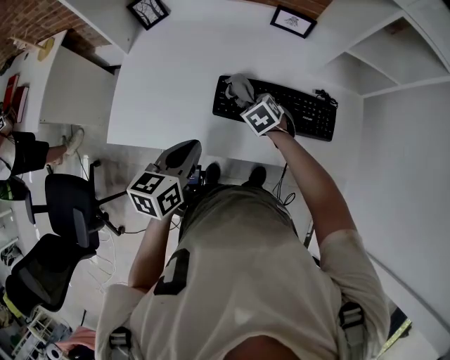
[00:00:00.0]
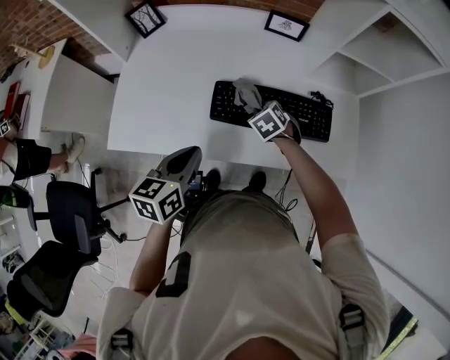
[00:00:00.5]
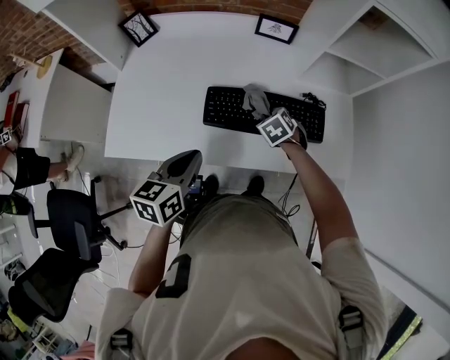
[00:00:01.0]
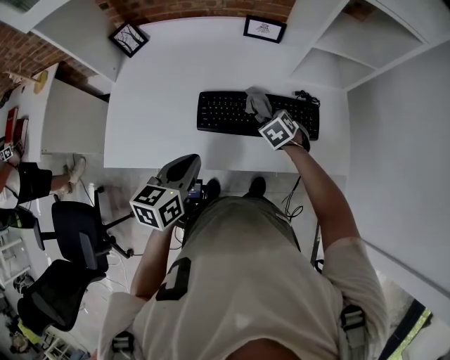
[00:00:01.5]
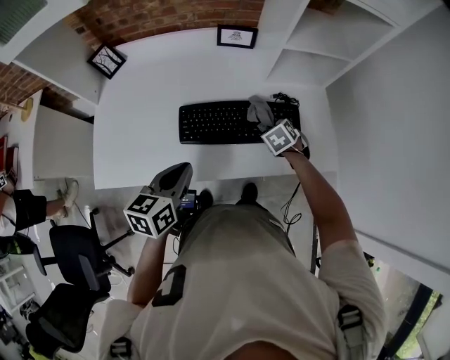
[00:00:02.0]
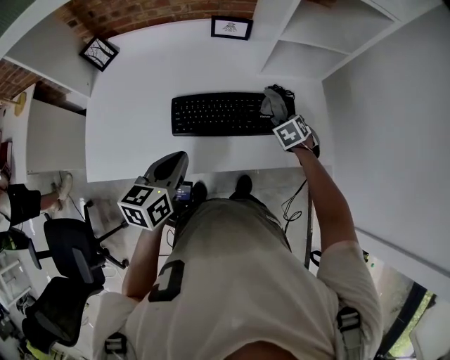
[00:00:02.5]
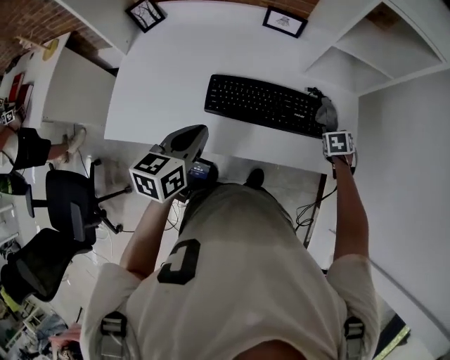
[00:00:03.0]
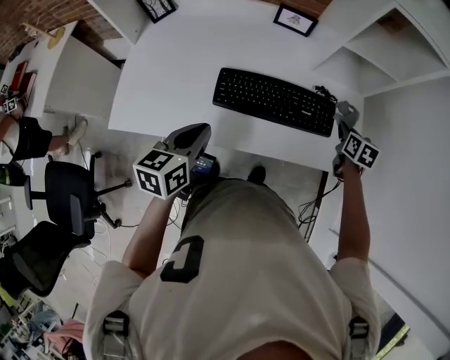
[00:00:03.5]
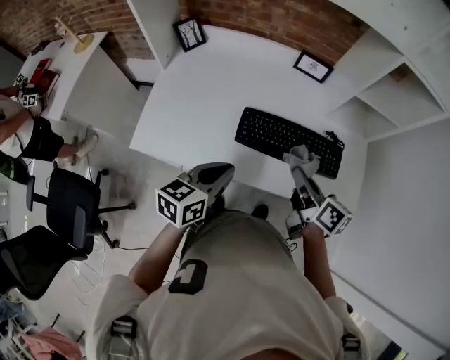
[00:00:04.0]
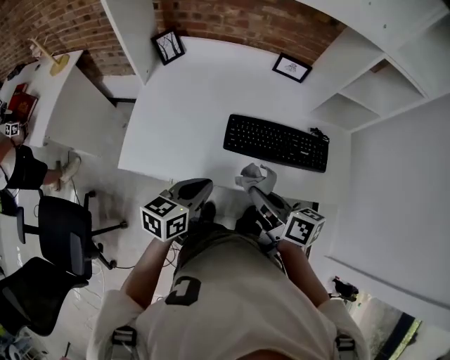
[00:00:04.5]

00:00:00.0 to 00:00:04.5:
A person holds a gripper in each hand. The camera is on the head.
00:00:00.0 to 00:00:02.0: The left gripper travels to the right by roughly 5 cm. The right gripper shifts about 20 cm to the right.
00:00:02.0 to 00:00:04.5: The left gripper shifts by about 10 cm. Meanwhile the right gripper changes place by about 35 cm, and tips its fingers upward by approximately 50 degrees.

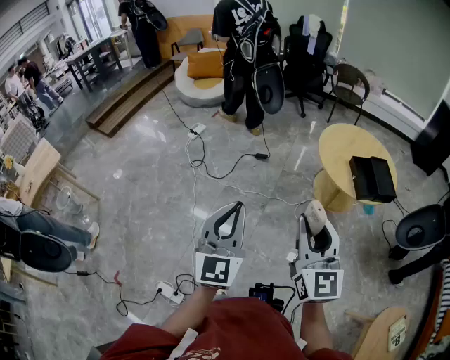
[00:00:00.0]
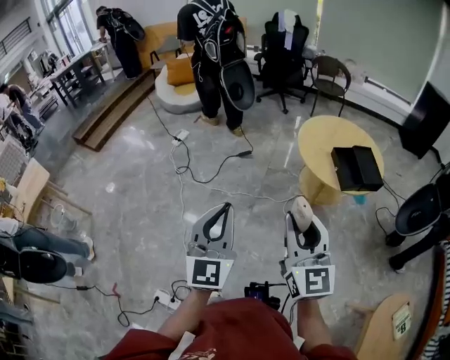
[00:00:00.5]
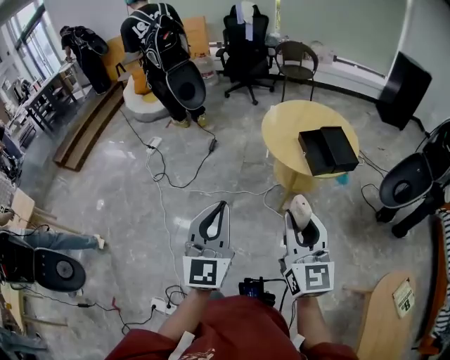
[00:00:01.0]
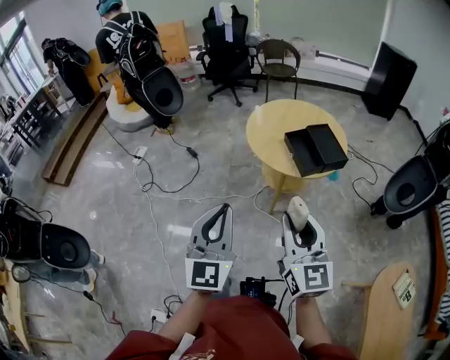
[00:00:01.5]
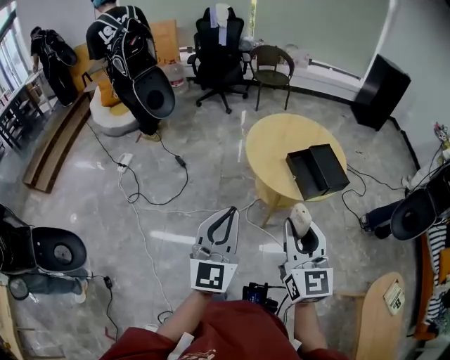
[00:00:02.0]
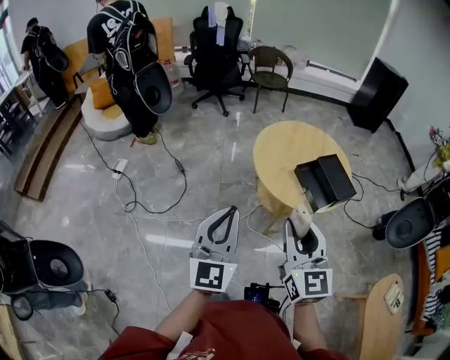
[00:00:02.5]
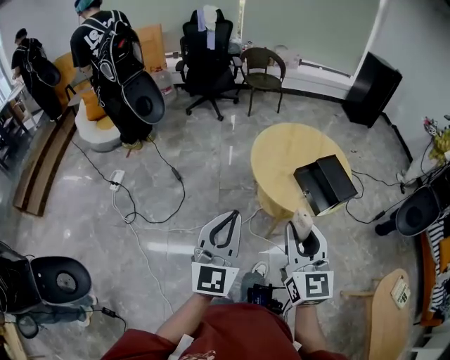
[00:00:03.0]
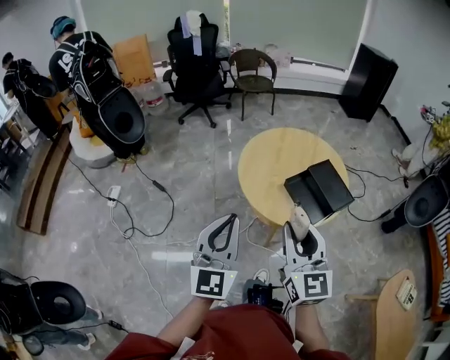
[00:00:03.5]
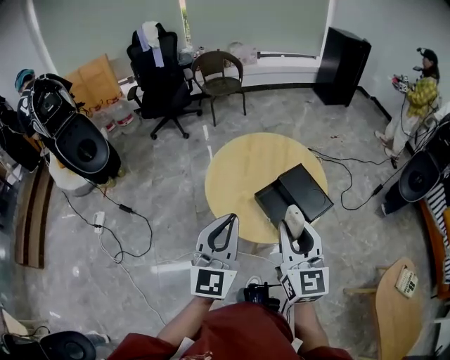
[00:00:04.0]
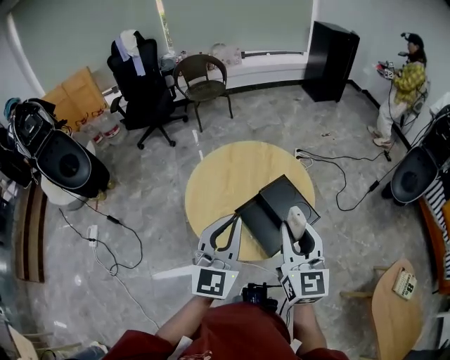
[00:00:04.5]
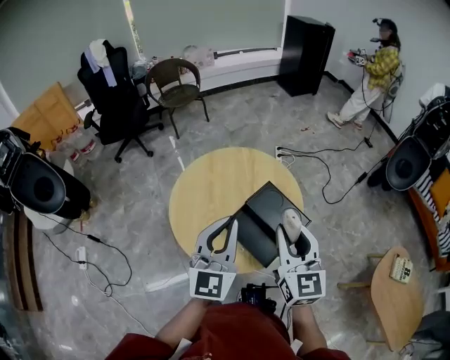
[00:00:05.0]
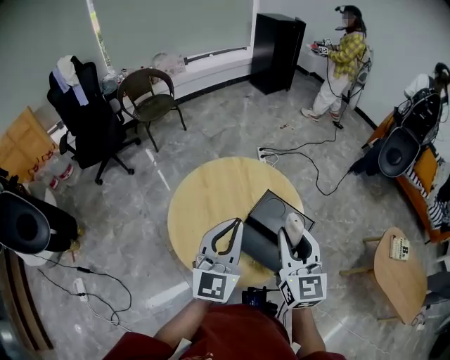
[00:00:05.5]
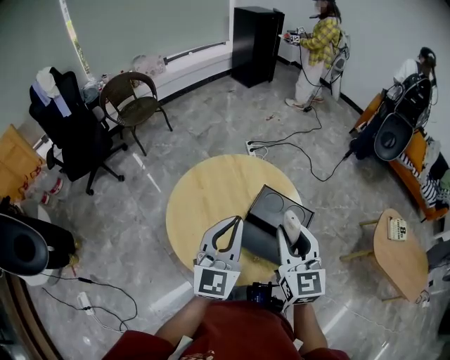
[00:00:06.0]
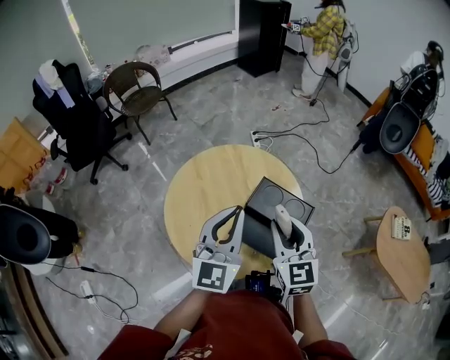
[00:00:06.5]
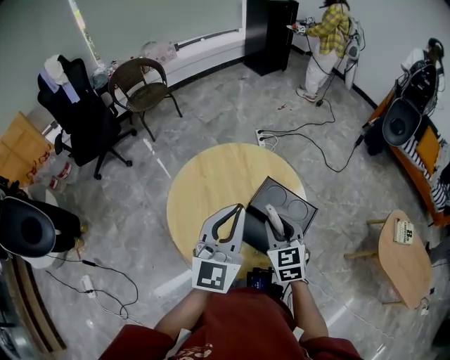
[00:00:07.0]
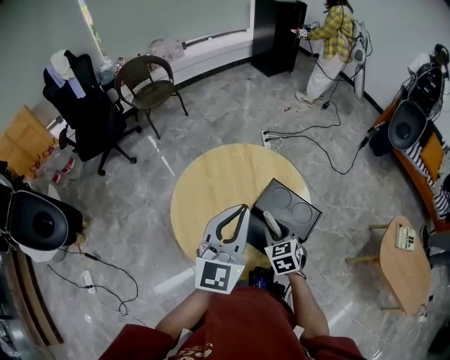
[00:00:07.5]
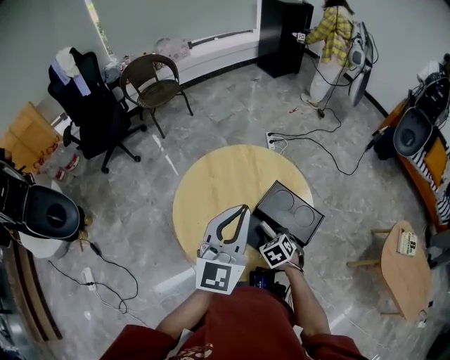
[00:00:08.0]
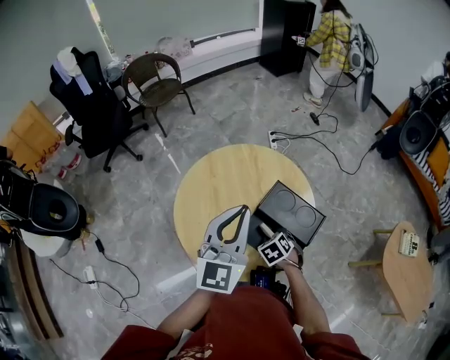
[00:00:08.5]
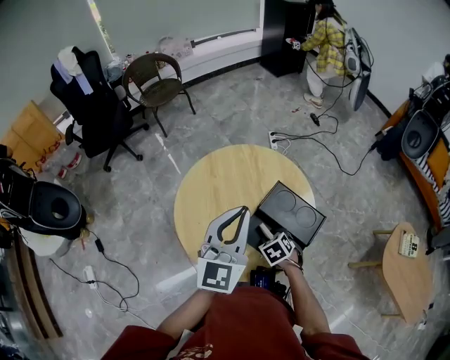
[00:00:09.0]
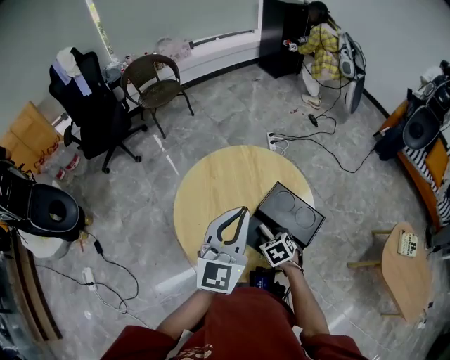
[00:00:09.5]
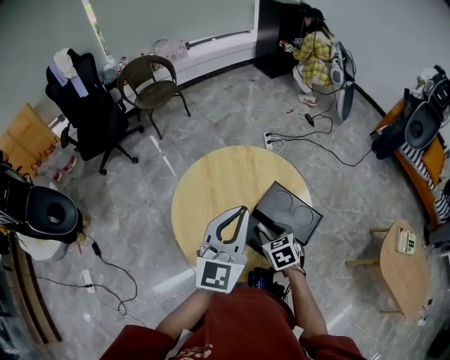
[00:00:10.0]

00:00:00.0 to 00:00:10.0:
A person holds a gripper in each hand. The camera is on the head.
00:00:00.0 to 00:00:02.0: Both grippers travel together forward and to the right, approximately 25 cm. The left gripper turns by about 20 degrees.
00:00:02.0 to 00:00:04.0: Both grippers travel together forward, about 30 cm.
00:00:04.0 to 00:00:06.0: The right gripper moves about 20 cm, and rotates approximately 30 degrees. The left gripper moves about 25 cm, and rotates some 30 degrees.
00:00:06.0 to 00:00:08.0: The right gripper goes some 30 cm downward, and tilts its fingers about 50 degrees downward.
00:00:08.0 to 00:00:10.0: The right gripper travels upward by some 5 cm.

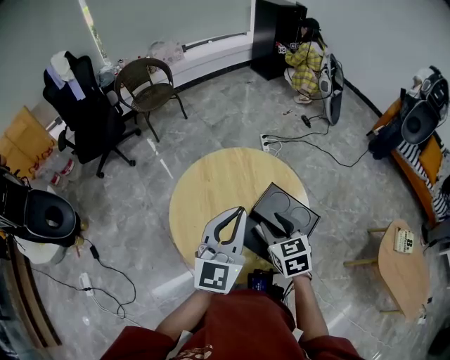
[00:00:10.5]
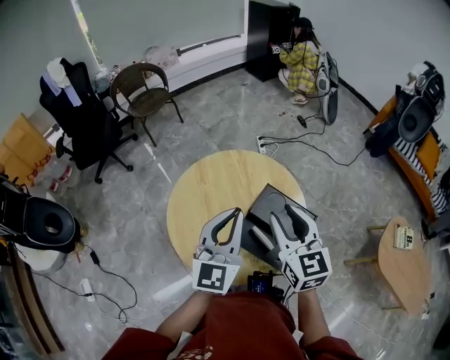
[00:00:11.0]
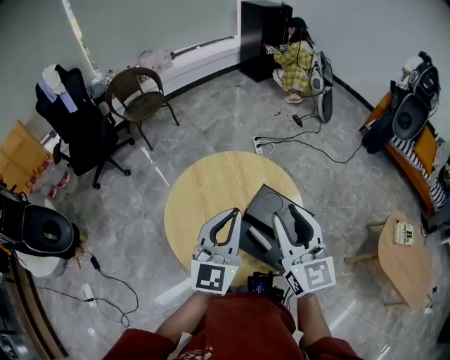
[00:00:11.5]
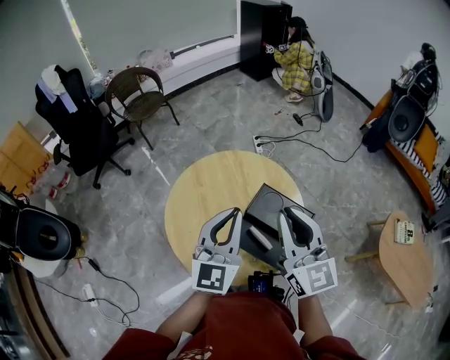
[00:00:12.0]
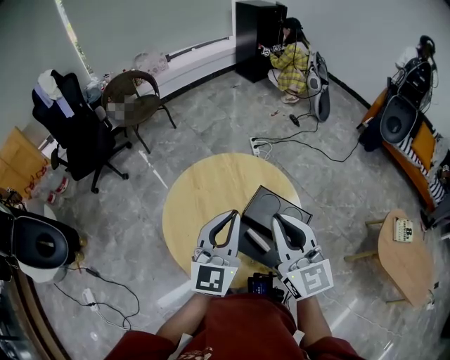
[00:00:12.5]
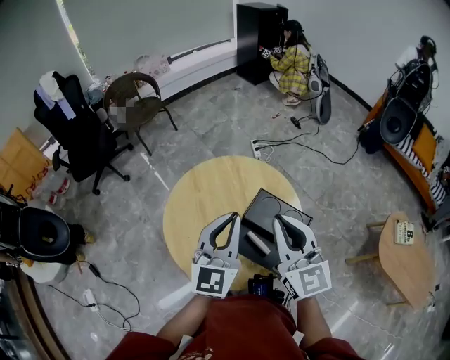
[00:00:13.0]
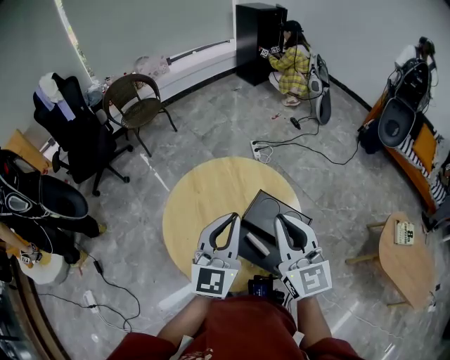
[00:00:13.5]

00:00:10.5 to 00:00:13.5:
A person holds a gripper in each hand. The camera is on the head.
00:00:10.5 to 00:00:12.0: The right gripper travels upward by approximately 15 cm, angles its fingers upward, by about 40 degrees, and closes.
00:00:12.0 to 00:00:13.5: The grippers move only a little.

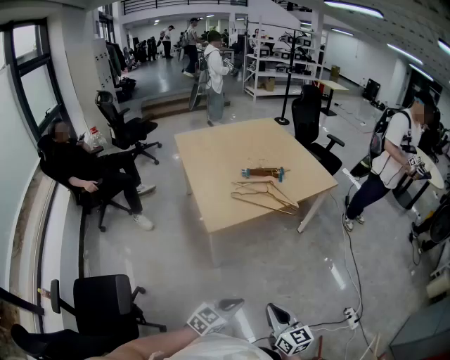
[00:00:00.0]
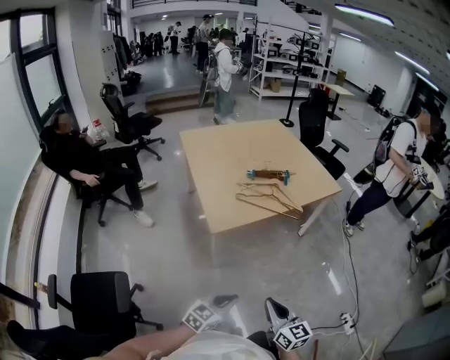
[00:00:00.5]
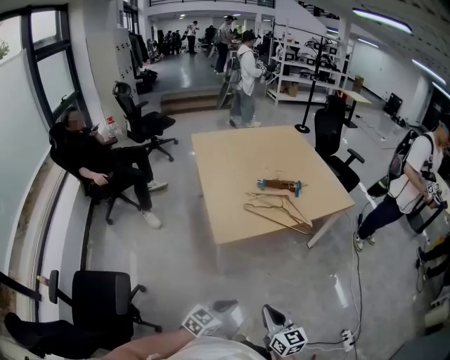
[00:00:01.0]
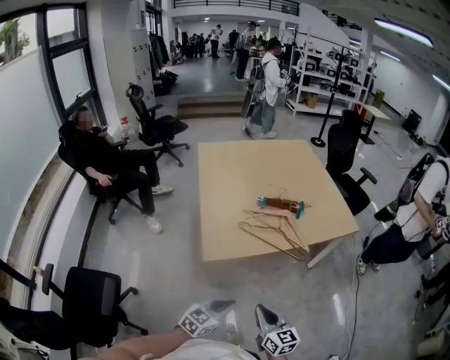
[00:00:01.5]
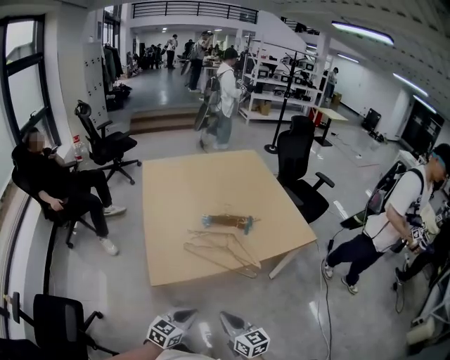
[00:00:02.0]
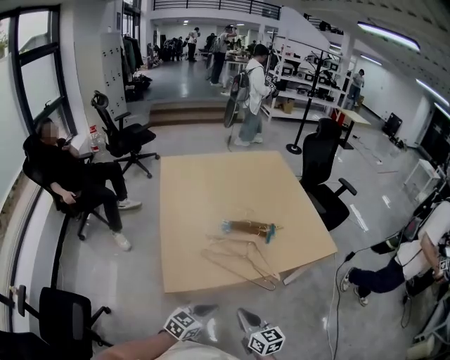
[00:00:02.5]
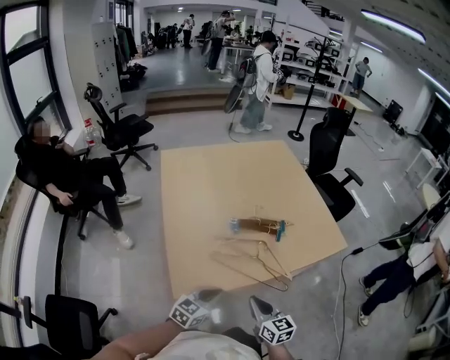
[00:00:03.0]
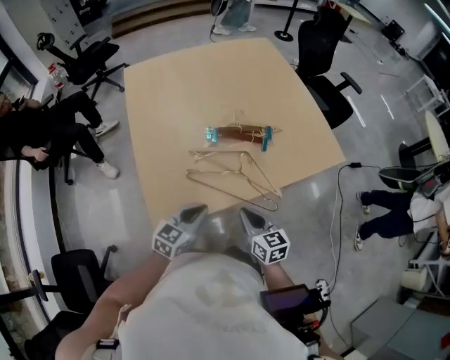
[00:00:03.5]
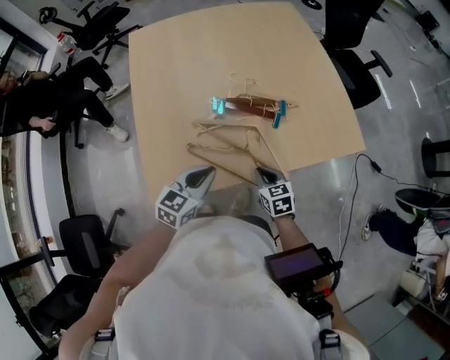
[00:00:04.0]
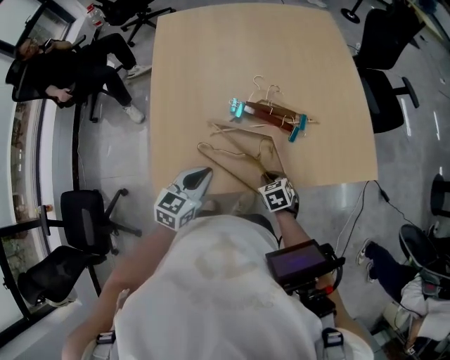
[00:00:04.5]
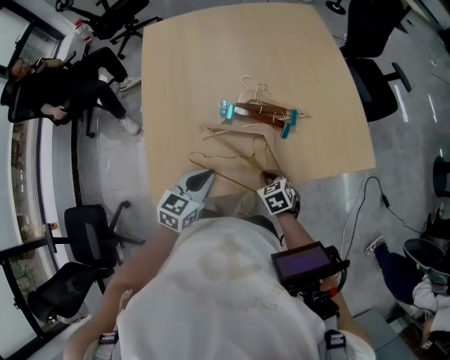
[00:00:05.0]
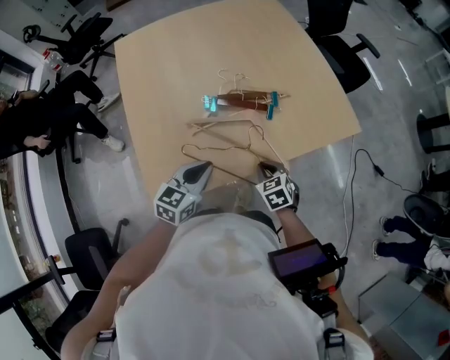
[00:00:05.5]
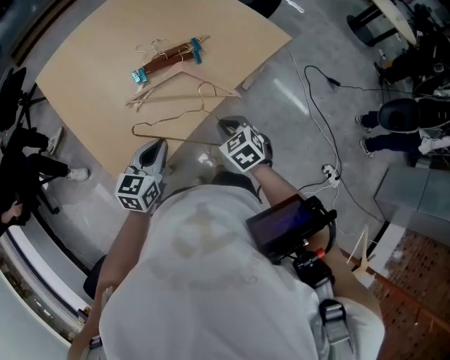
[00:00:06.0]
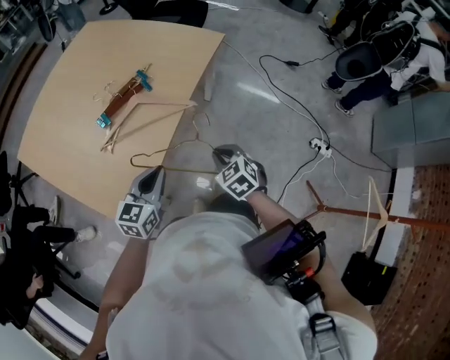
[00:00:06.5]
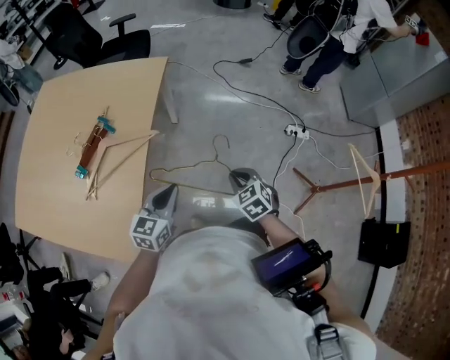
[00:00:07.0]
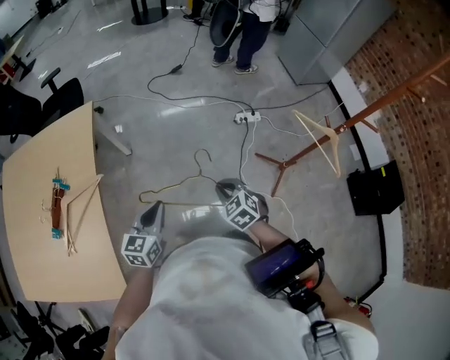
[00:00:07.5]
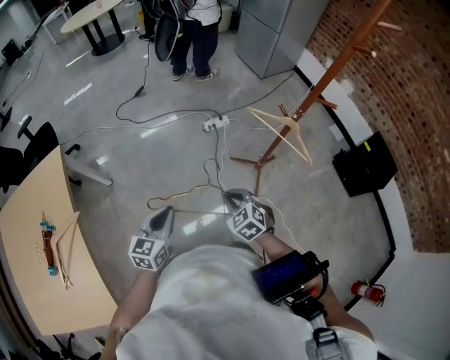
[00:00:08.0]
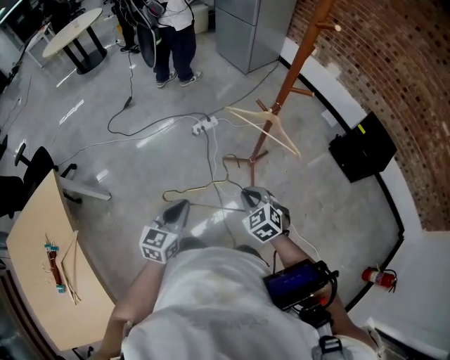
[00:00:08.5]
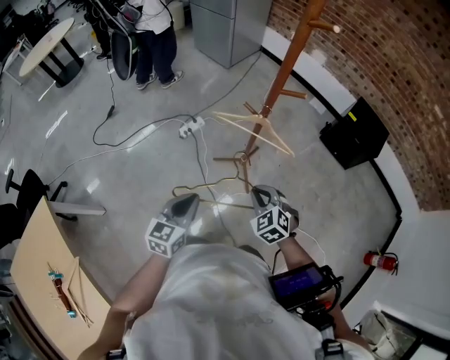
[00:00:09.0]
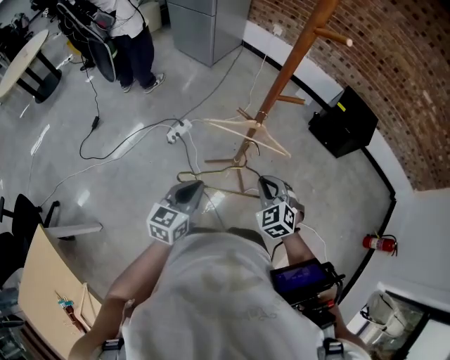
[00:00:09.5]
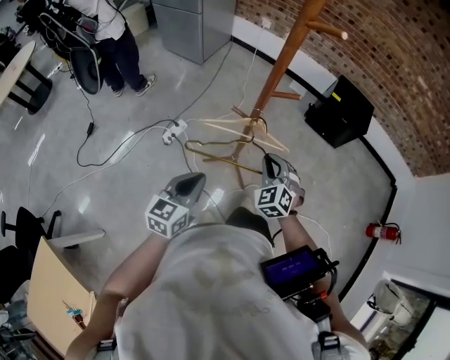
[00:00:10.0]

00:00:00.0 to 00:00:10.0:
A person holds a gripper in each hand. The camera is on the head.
00:00:00.0 to 00:00:02.0: Both grippers travel together forward, approximately 30 cm.
00:00:02.0 to 00:00:04.0: The left gripper goes approximately 30 cm forward. The right gripper goes approximately 35 cm forward and downward, and turns by approximately 30 degrees.
00:00:04.0 to 00:00:06.0: The left gripper moves some 5 cm, while the right gripper ends up about 10 cm from where it was, and turns by about 20 degrees.
00:00:06.0 to 00:00:08.0: The pair of grippers is taken roughly 60 cm. The left gripper swivels roughly 70 degrees. Meanwhile the right gripper rotates about 70 degrees.
00:00:08.0 to 00:00:10.0: The right gripper ends up roughly 30 cm from where it was, and turns by roughly 50 degrees. Meanwhile the left gripper changes place by approximately 30 cm, and changes its angle by about 40 degrees.
